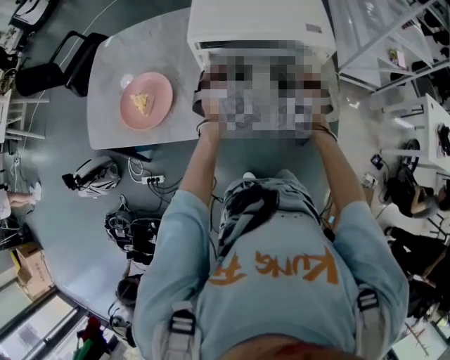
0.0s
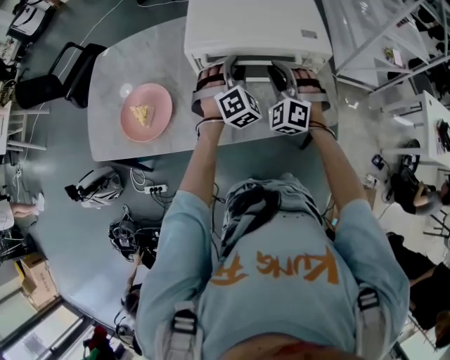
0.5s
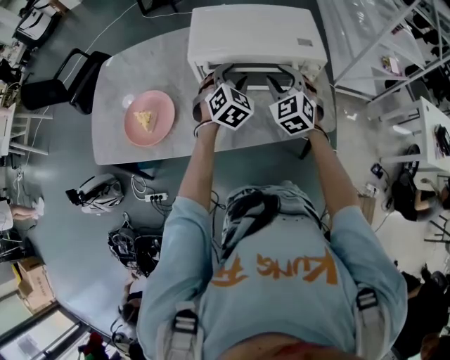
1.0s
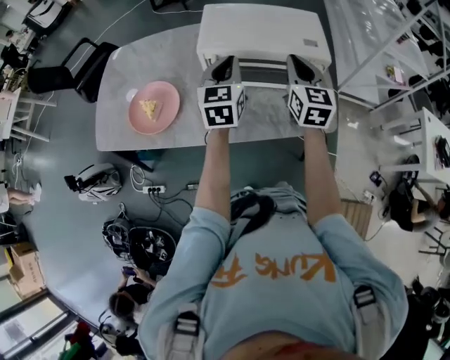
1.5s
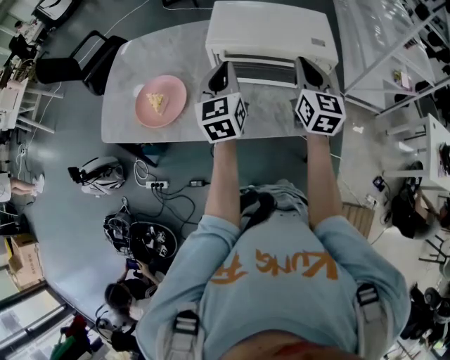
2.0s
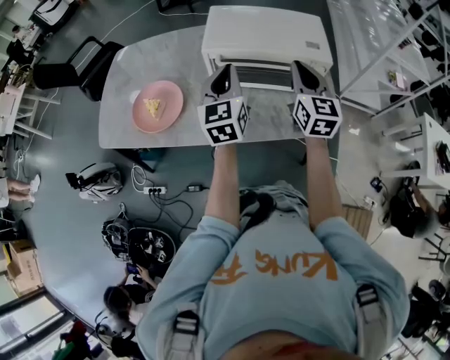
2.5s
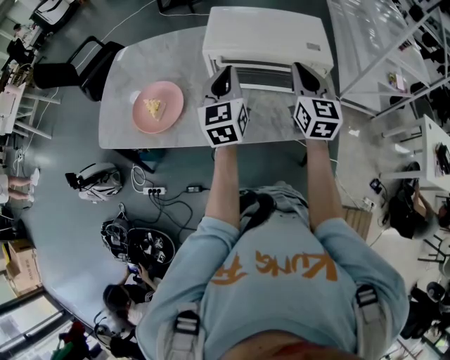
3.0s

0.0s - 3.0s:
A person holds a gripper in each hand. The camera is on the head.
0.0s - 1.5s: The two grippers go some 10 cm upward. The left gripper rotates around the line of its fingers by approximately 60 degrees, counterclockwise from behind, and closes its fingers. The right gripper twists roughly 70 degrees clockwise, seen from behind, and closes up.
1.5s - 3.0s: The grippers stay close to where they were, moving slightly.

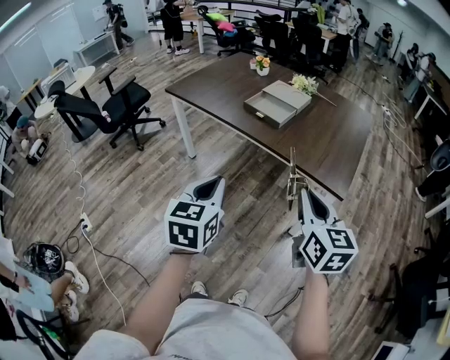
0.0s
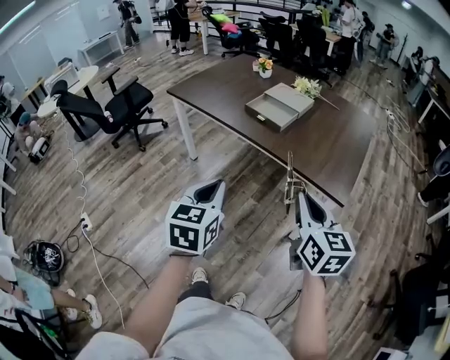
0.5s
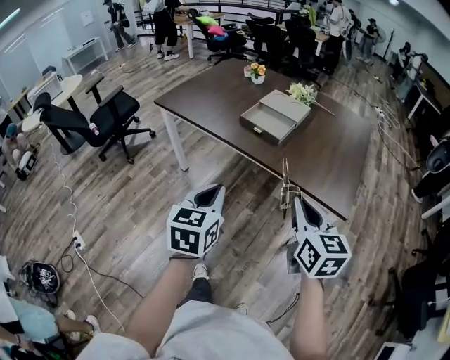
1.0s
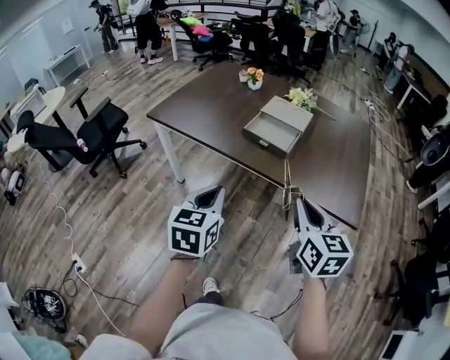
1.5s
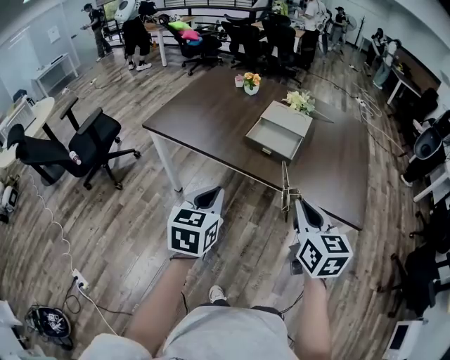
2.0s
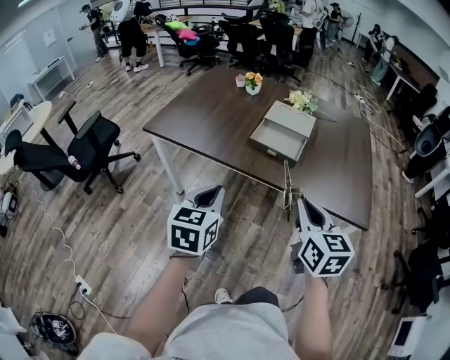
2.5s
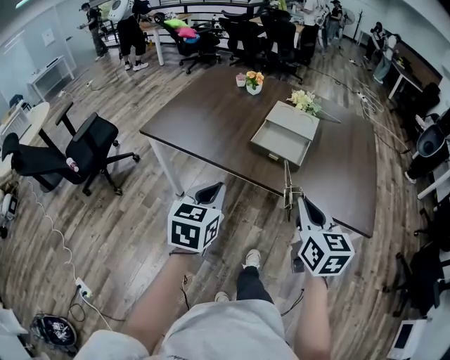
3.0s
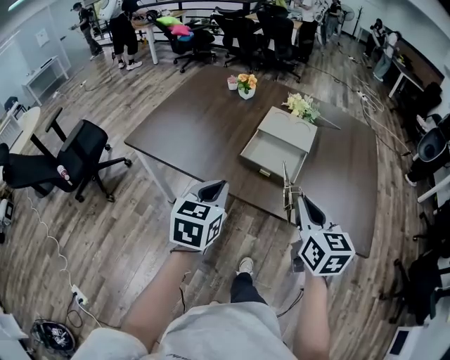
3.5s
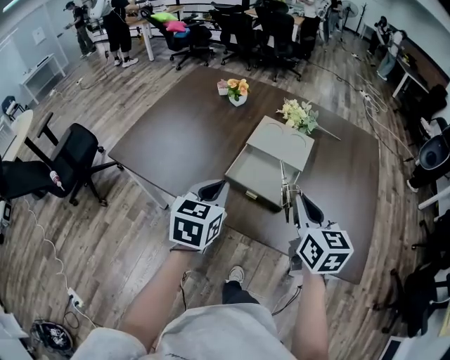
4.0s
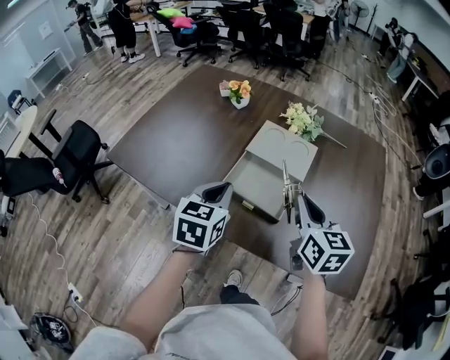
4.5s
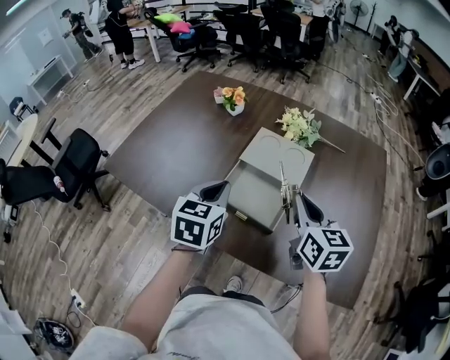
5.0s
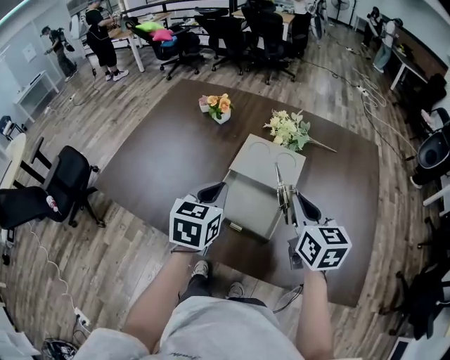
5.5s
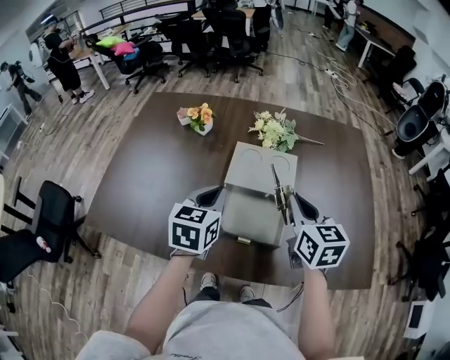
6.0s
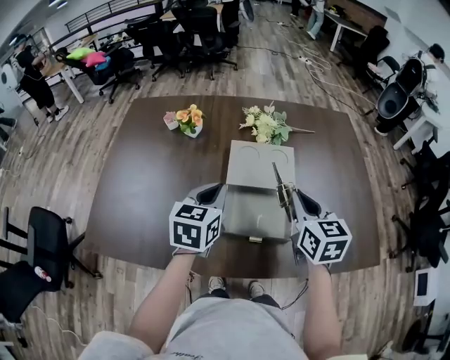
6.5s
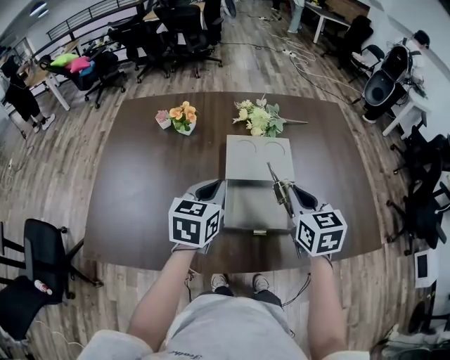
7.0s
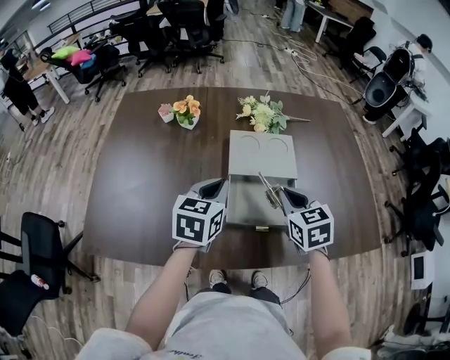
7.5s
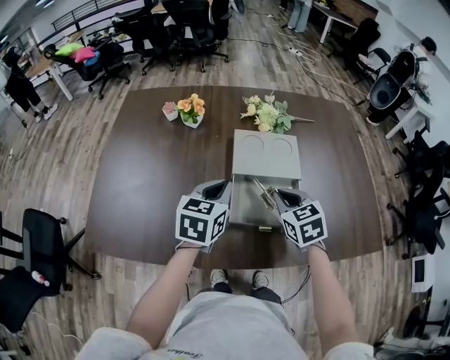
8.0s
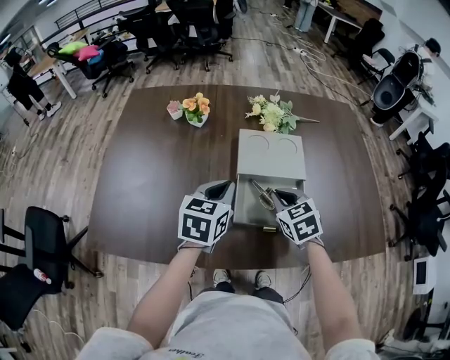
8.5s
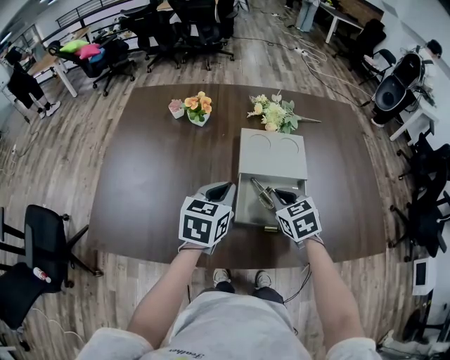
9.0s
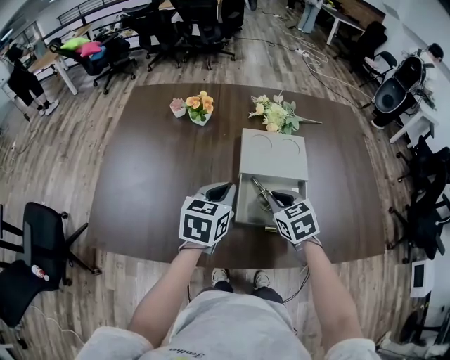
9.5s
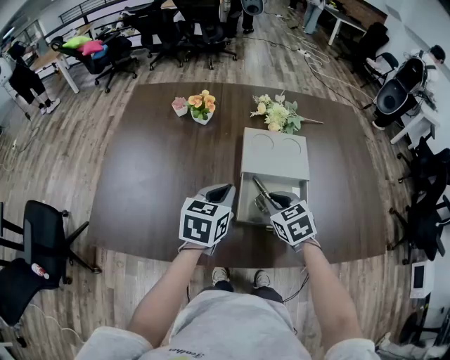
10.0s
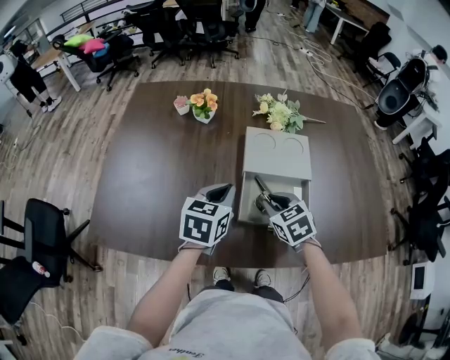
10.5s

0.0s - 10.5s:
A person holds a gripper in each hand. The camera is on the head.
0.0s - 2.0s: Both grippers travel together forward and to the left, roughly 25 cm.
2.0s - 4.0s: Both grippers travel together forward, approximately 25 cm.
4.0s - 6.5s: Both grippers travel together forward, roughly 15 cm. The left gripper swivels approximately 20 degrees.
6.5s - 8.5s: The right gripper heads downward and to the left, covering some 15 cm, and rotates approximately 30 degrees.
8.5s - 10.5s: The right gripper moves some 5 cm.

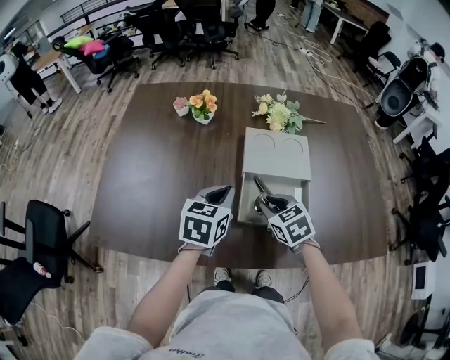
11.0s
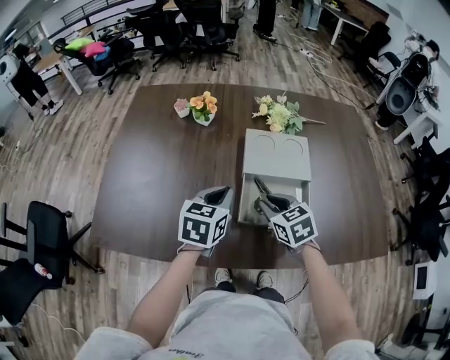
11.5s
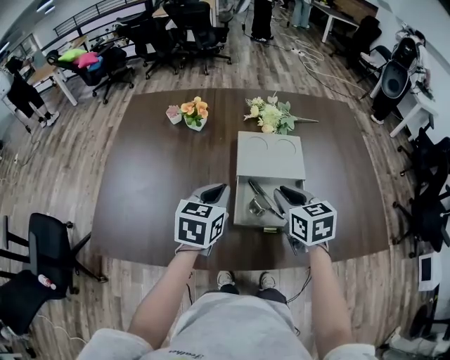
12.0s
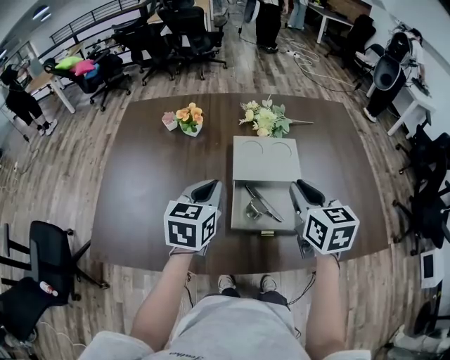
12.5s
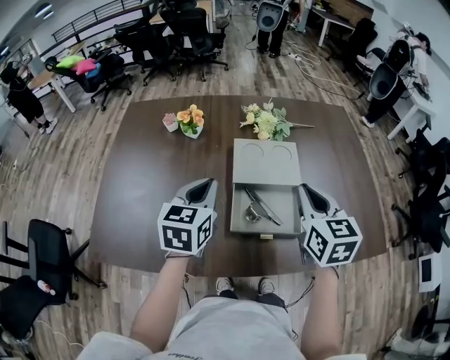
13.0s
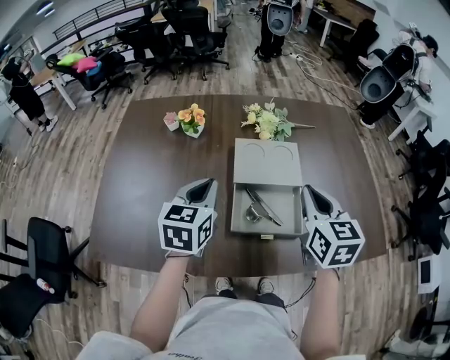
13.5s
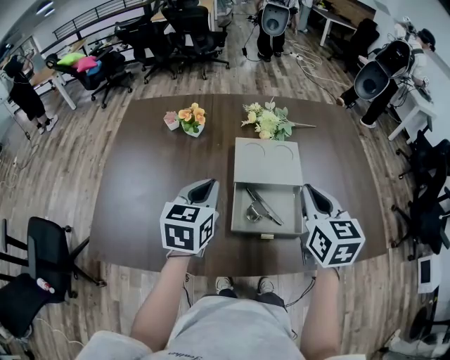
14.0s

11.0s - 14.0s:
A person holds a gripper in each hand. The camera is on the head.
11.0s - 12.5s: The right gripper travels upward and to the right by approximately 20 cm, and turns by roughly 30 degrees. The left gripper goes approximately 5 cm upward.
12.5s - 14.0s: The grippers stay close to where they were, moving slightly.

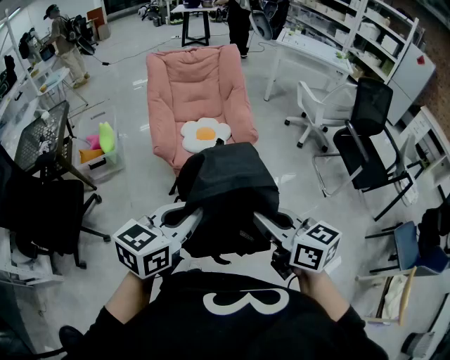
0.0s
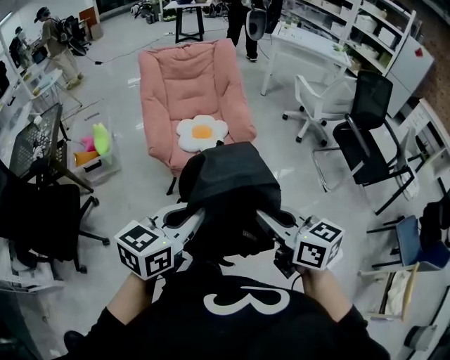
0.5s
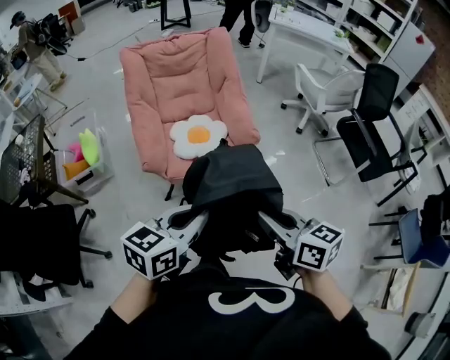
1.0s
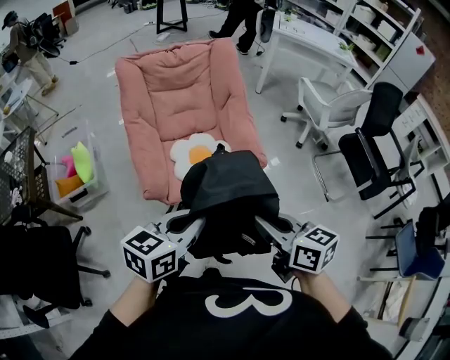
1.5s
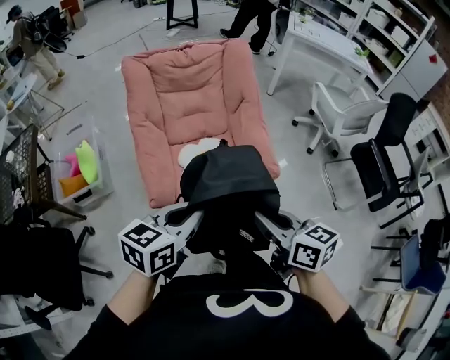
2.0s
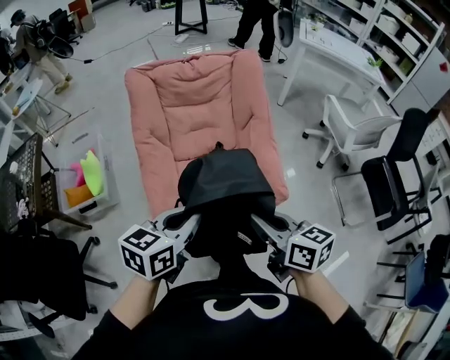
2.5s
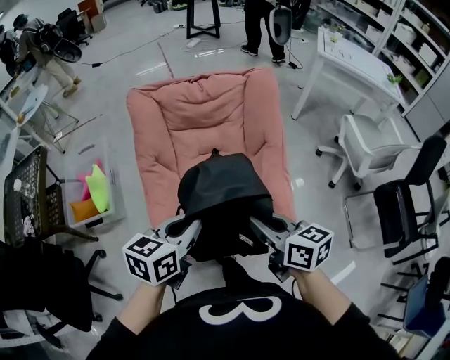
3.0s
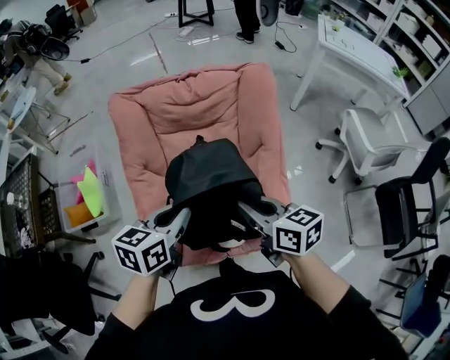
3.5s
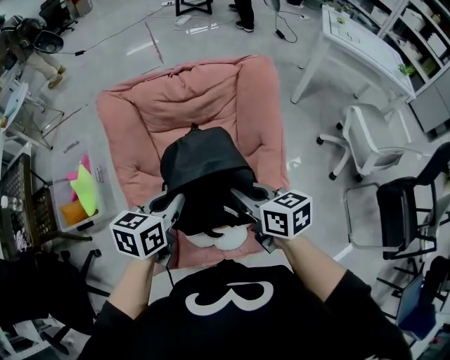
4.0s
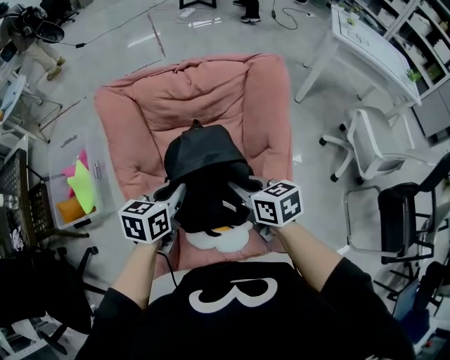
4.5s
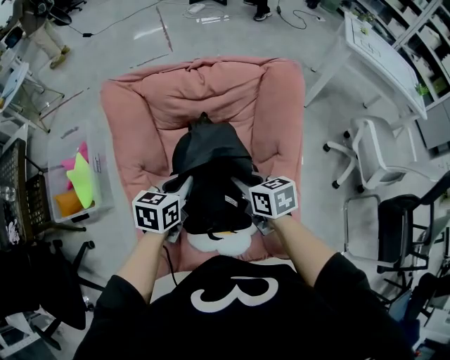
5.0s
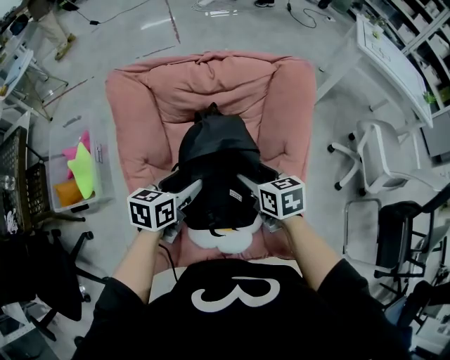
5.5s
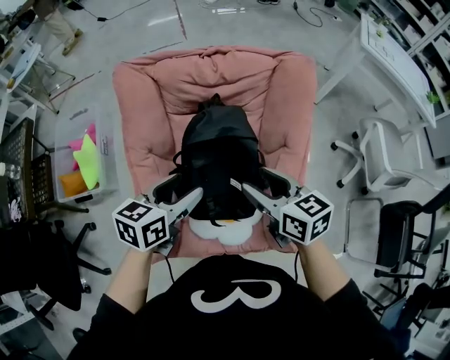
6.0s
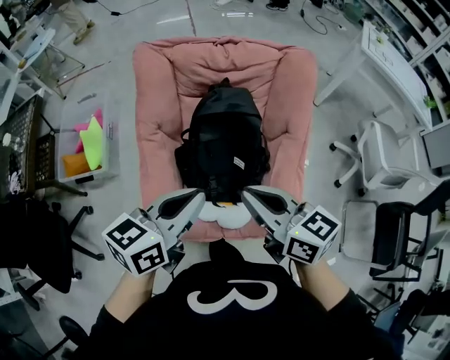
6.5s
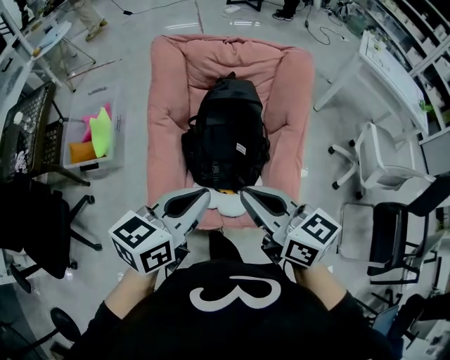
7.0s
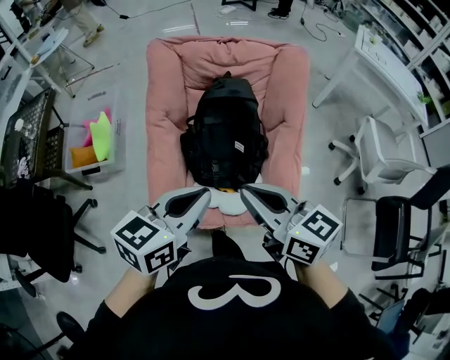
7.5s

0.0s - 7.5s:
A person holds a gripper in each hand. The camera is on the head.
0.0s - 2.0s: Both grippers move forward, roughly 40 cm.
2.0s - 4.0s: The pair of grippers is taken forward, roughly 40 cm.
4.0s - 5.5s: The right gripper goes approximately 15 cm forward and downward, and opens, while the left gripper heads downward and forward, covering about 15 cm, and opens its fingers.
5.5s - 7.5s: Both grippers move backward and upward, approximately 35 cm. The right gripper angles its fingers upward, by approximately 30 degrees, and closes its fingers; the left gripper closes up.

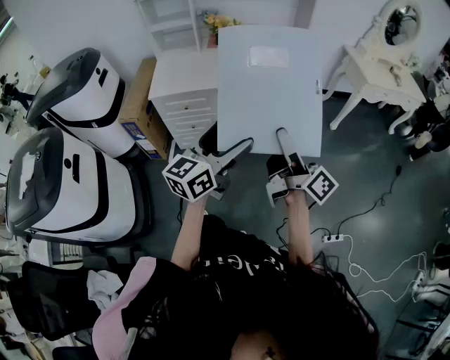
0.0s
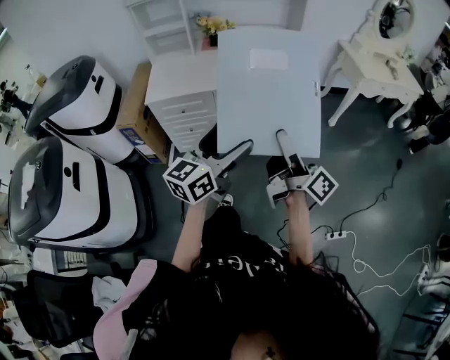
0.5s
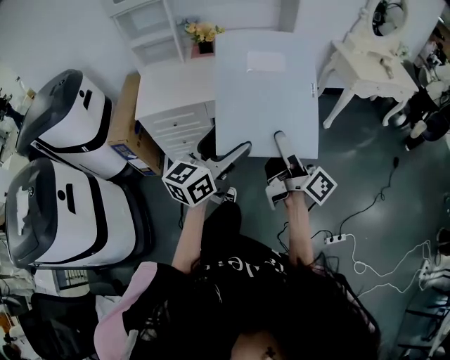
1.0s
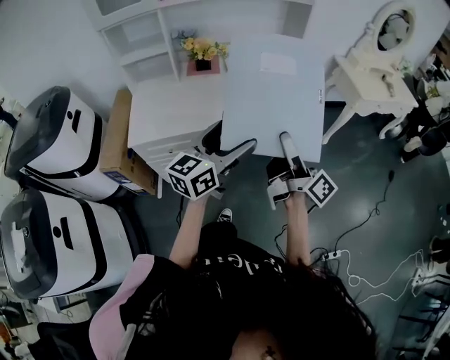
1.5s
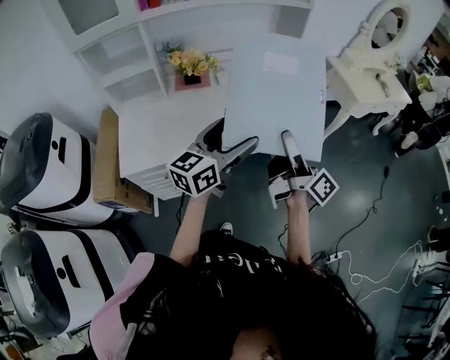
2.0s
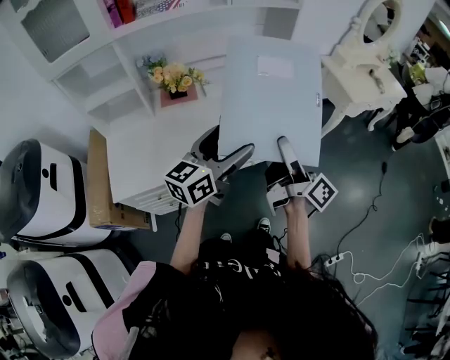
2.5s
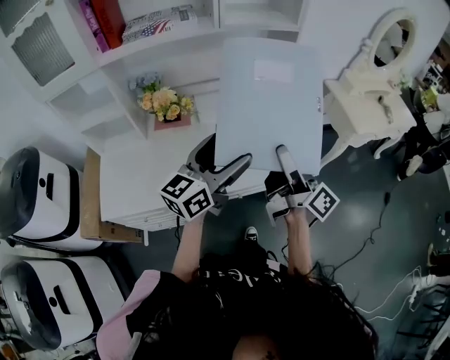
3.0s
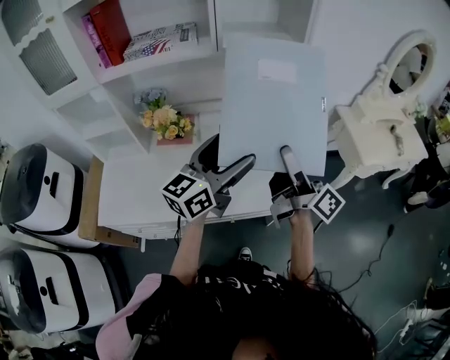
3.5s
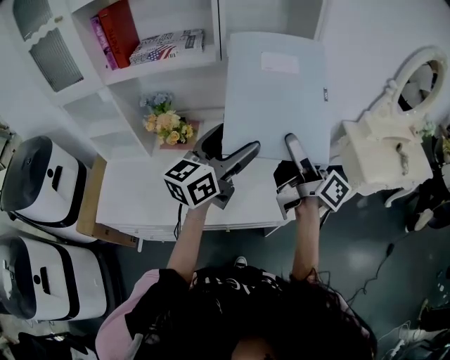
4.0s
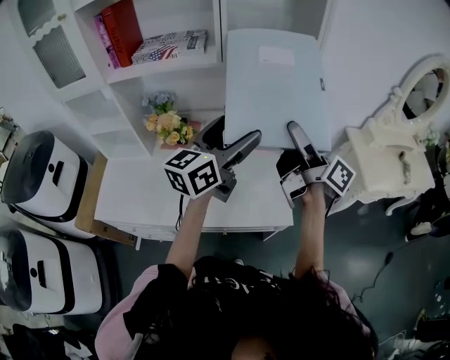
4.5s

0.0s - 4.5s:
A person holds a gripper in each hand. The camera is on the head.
0.0s - 2.0s: The grippers both shift forward by some 35 cm.
2.0s - 4.5s: The left gripper moves forward and to the right, roughly 35 cm; the right gripper goes approximately 40 cm forward, and rotates roughly 20 degrees.
